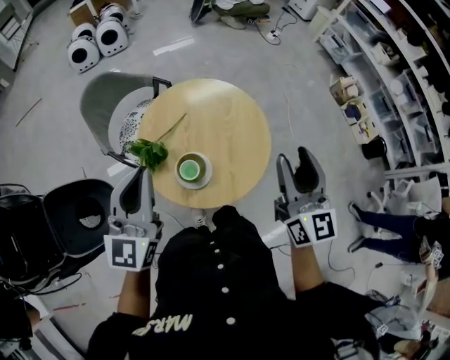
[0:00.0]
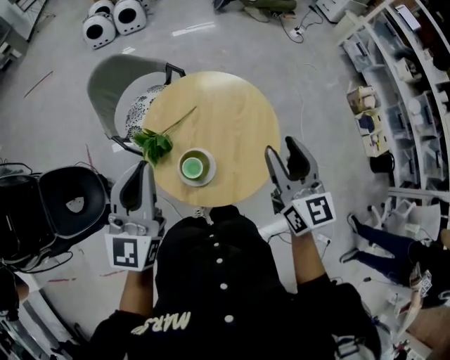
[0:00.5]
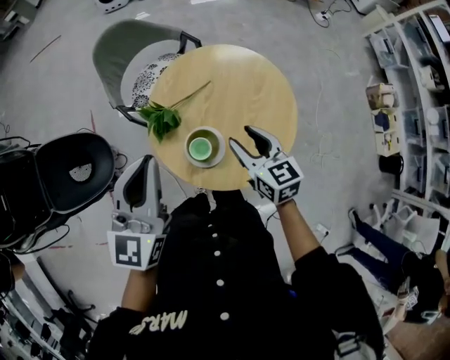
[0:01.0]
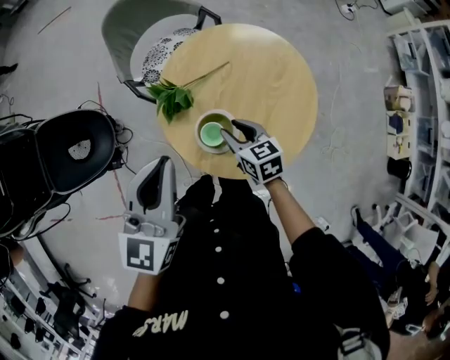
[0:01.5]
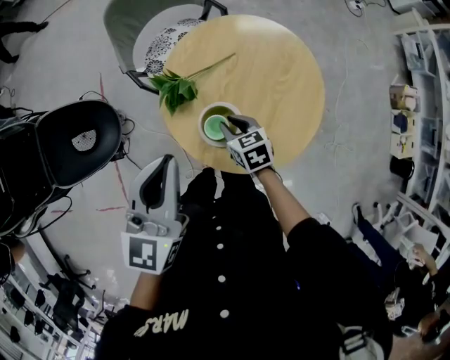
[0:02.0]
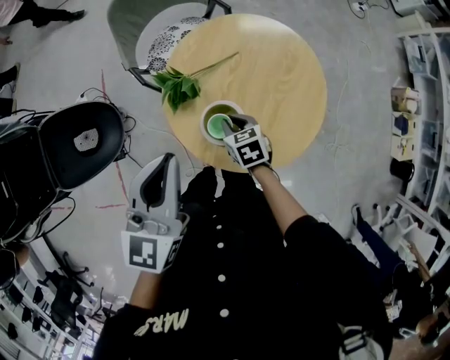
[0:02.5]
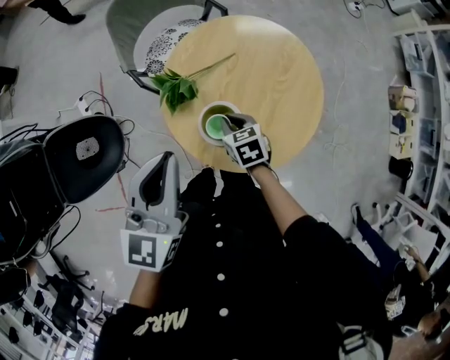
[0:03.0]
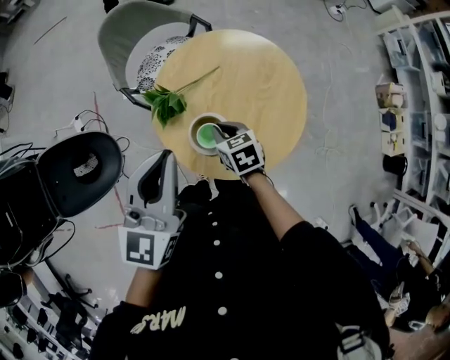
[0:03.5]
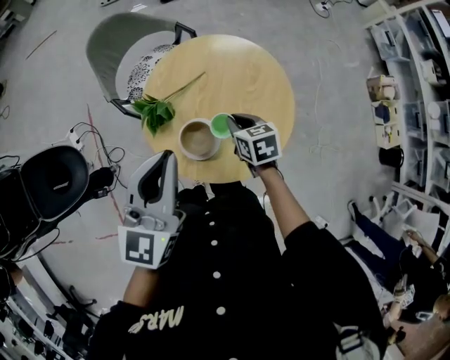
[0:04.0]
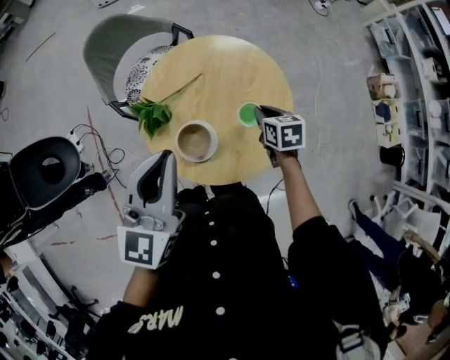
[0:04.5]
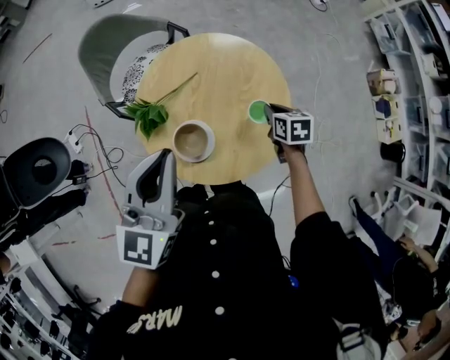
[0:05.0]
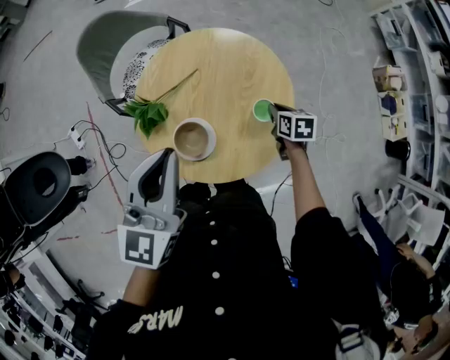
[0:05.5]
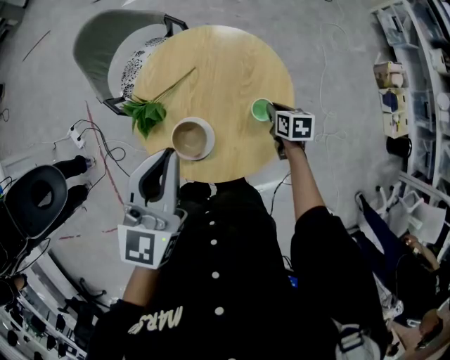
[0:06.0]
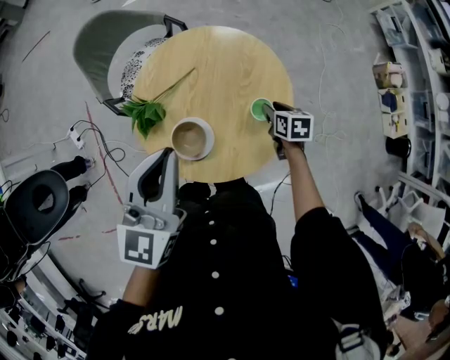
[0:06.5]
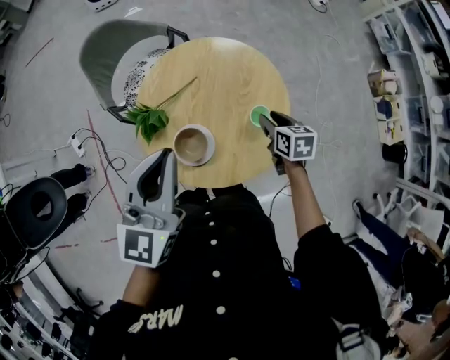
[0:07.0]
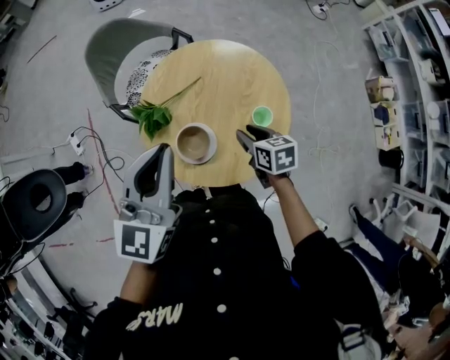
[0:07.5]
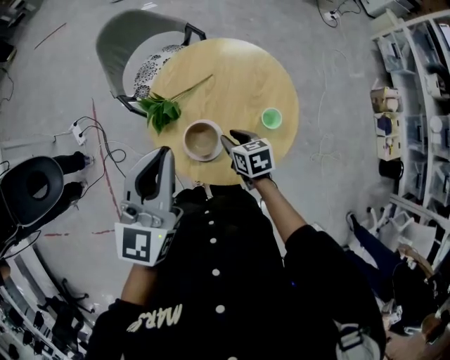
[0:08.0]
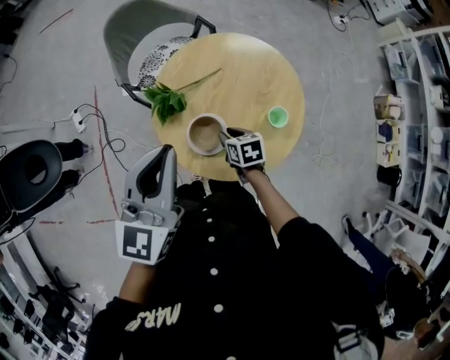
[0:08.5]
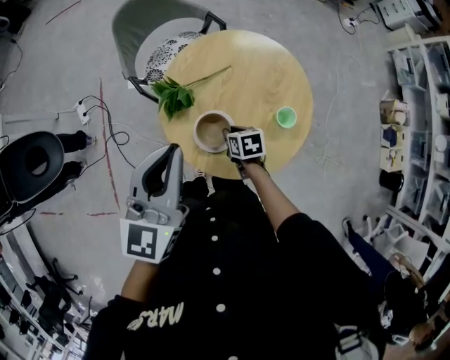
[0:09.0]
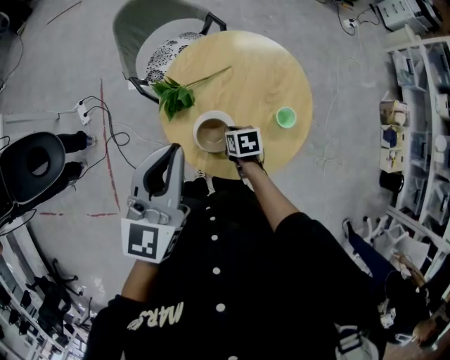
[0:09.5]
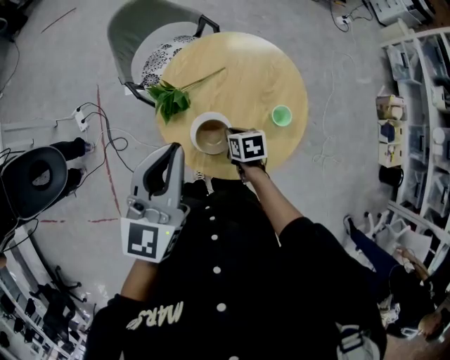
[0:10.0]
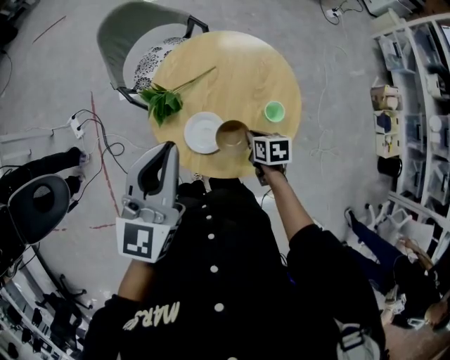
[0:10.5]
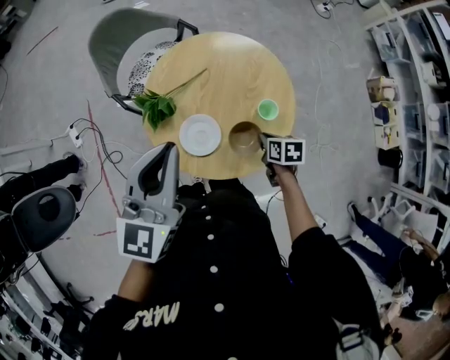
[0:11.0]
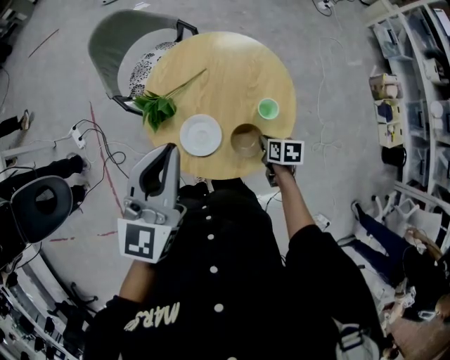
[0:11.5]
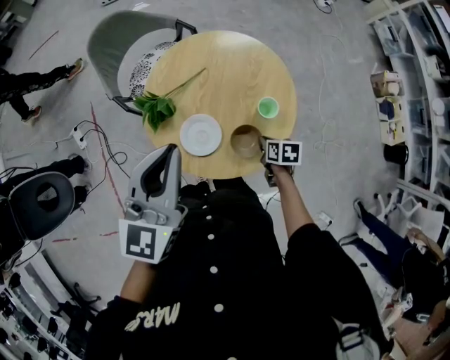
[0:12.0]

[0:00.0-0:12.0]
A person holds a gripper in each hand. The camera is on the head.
0:00.0 to 0:02.0: The left gripper shifts about 10 cm downward, and rotates some 20 degrees. The right gripper goes approximately 40 cm downward, angles its fingers downward, by about 50 degrees, and closes.
0:02.0 to 0:04.0: The right gripper goes about 15 cm to the right and upward, while the left gripper moves to the right, approximately 5 cm.
0:04.0 to 0:06.0: The left gripper goes roughly 5 cm to the right, while the right gripper moves to the right and downward, roughly 20 cm.
0:06.0 to 0:08.0: The left gripper shifts about 5 cm to the left, while the right gripper goes approximately 20 cm to the left, turns by about 20 degrees, and opens.
0:08.0 to 0:10.0: The right gripper closes up.
0:10.0 to 0:12.0: The left gripper moves approximately 5 cm; the right gripper shifts some 20 cm to the right and backward.

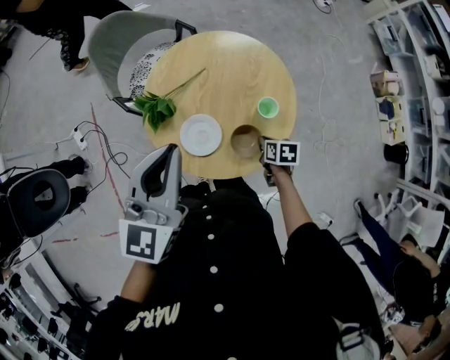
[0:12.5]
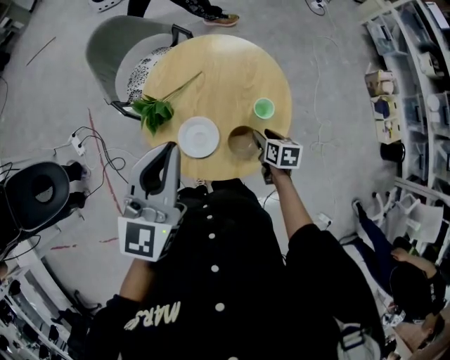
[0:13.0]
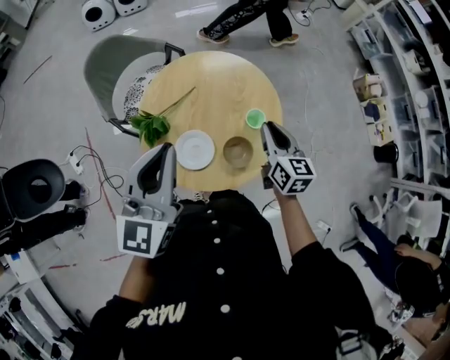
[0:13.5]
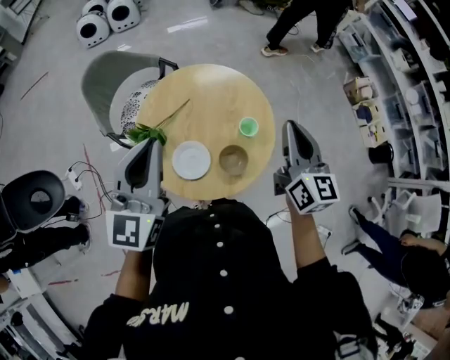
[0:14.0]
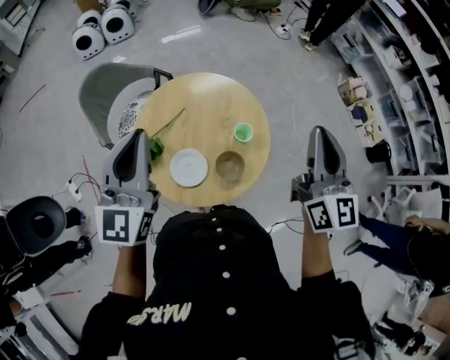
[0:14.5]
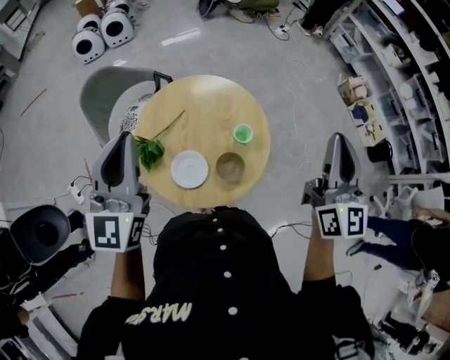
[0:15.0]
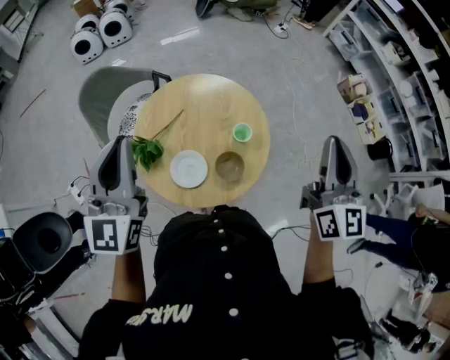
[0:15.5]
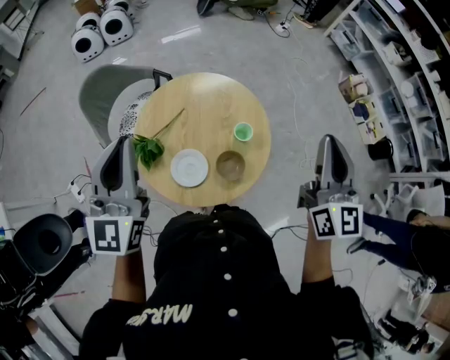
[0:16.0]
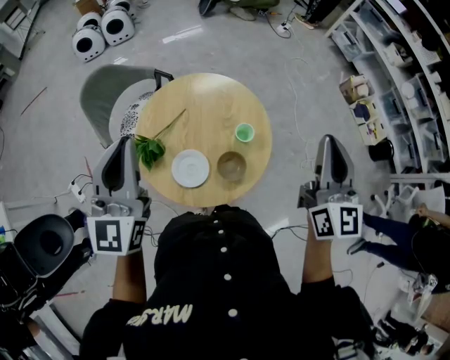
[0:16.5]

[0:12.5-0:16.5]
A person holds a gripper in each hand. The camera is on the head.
0:12.5 to 0:14.5: The right gripper moves upward, some 50 cm, angles its fingers upward, by approximately 70 degrees, and opens, then closes again. The left gripper goes roughly 10 cm upward.
0:14.5 to 0:16.5: The grippers make only small movements.

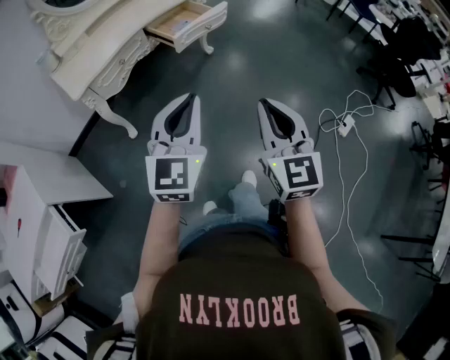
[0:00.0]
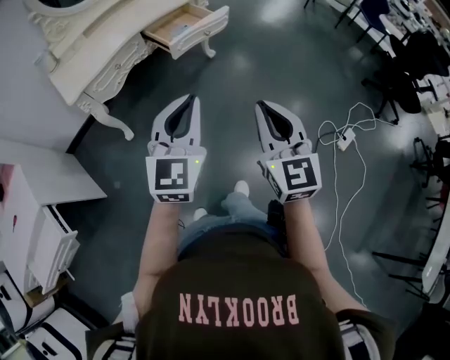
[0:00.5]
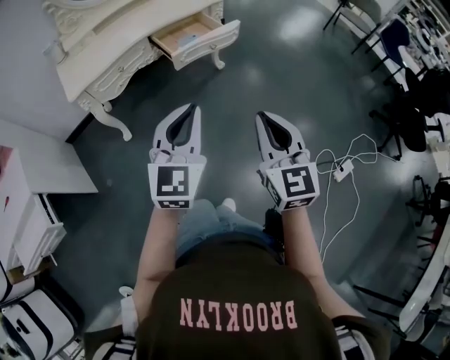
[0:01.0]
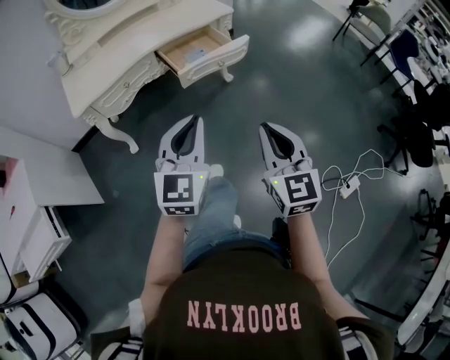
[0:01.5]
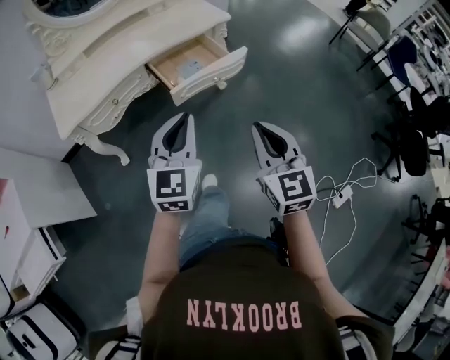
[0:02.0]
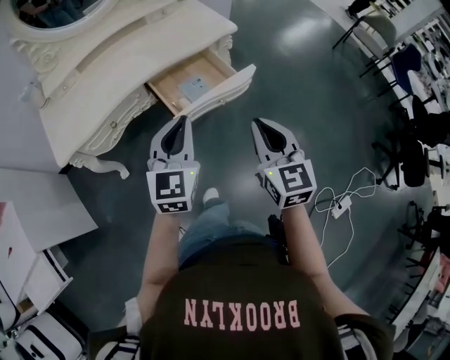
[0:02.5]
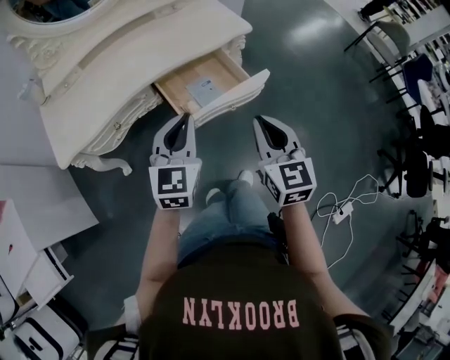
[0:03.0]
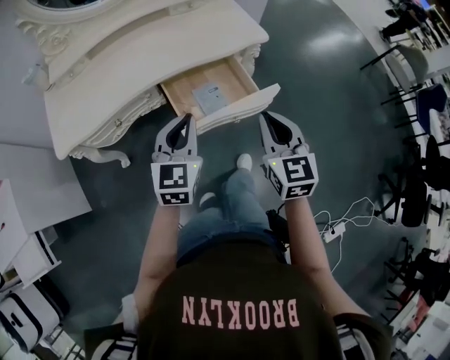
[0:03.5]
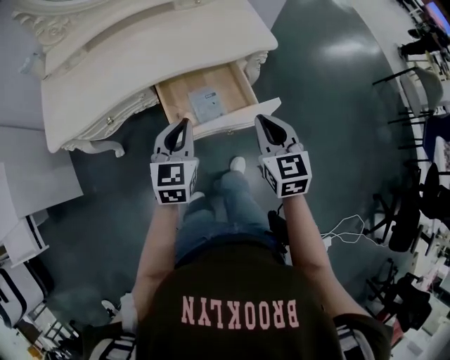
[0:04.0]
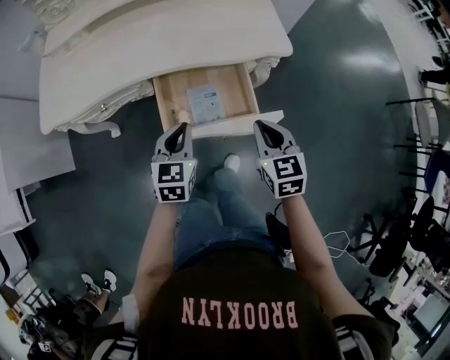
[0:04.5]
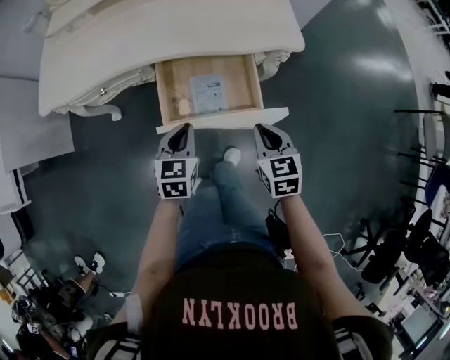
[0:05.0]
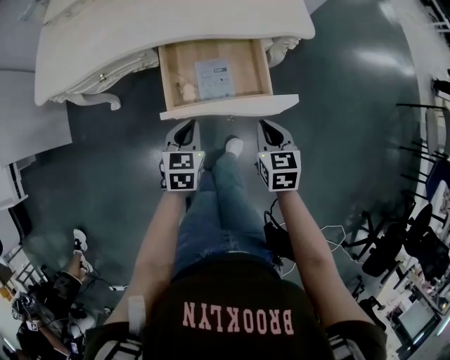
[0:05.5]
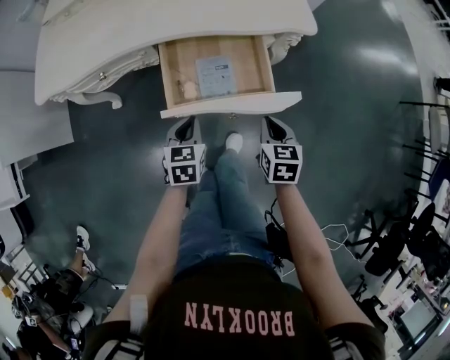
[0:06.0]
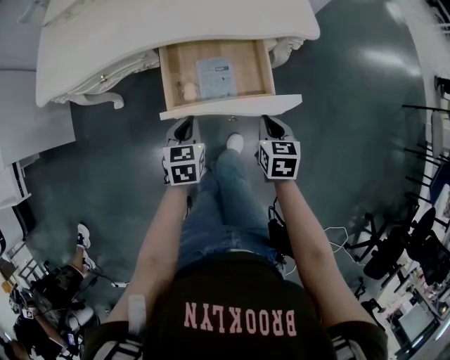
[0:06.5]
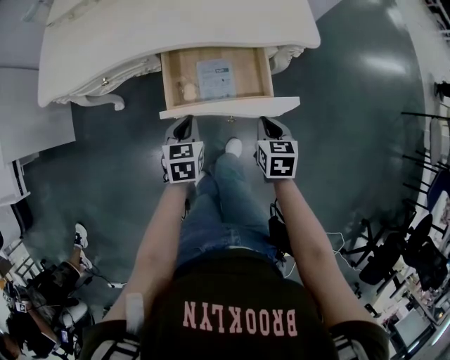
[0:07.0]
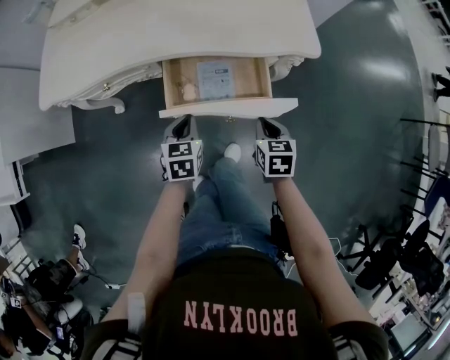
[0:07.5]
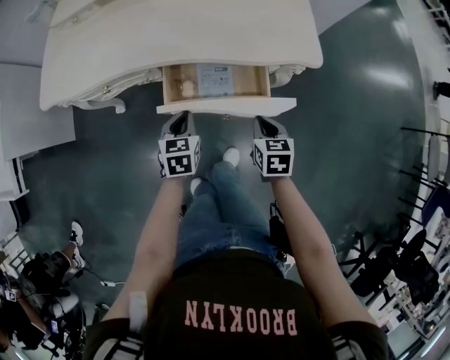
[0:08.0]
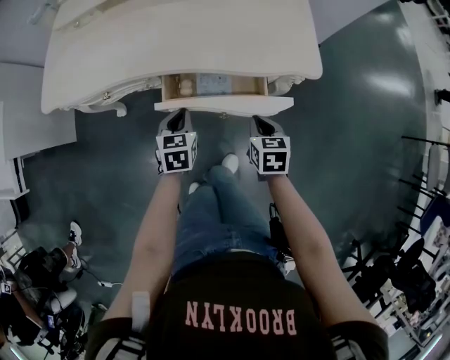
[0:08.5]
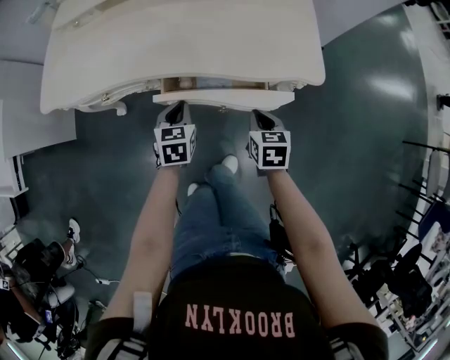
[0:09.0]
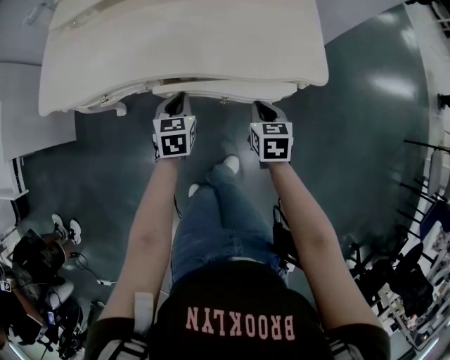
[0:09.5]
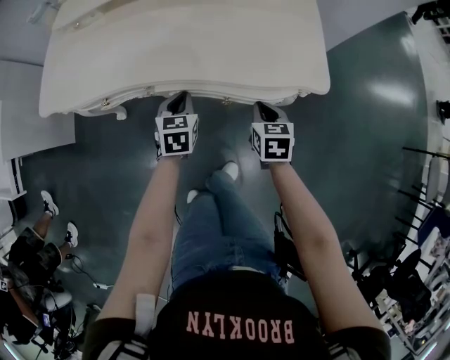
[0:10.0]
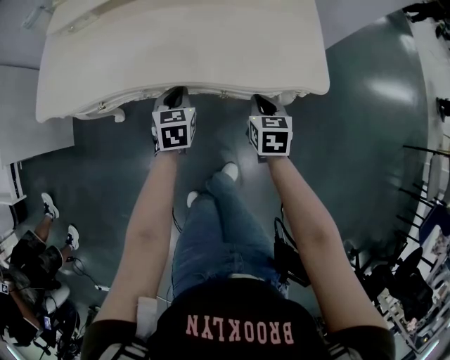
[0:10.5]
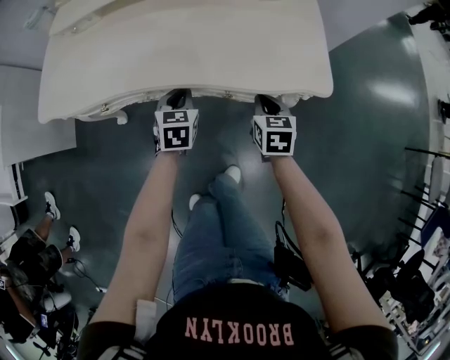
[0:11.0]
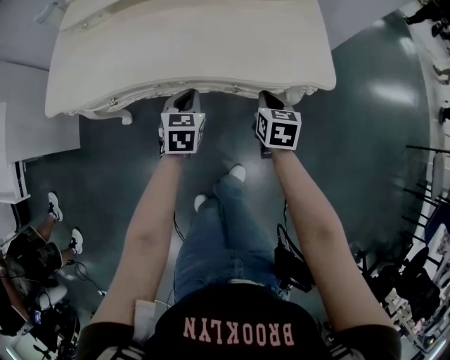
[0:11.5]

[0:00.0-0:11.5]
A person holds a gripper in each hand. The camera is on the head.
0:00.0 to 0:02.0: The two grippers go roughly 30 cm forward.
0:02.0 to 0:04.0: The left gripper travels forward and downward by approximately 30 cm, and rotates approximately 30 degrees; the right gripper heads forward, covering roughly 35 cm, and turns by about 20 degrees.
0:04.0 to 0:06.0: Both grippers move downward, about 20 cm. The left gripper swivels roughly 30 degrees. Meanwhile the right gripper swivels about 20 degrees.
0:06.0 to 0:07.5: The two grippers go about 5 cm forward.
0:07.5 to 0:09.5: Both grippers move forward, approximately 15 cm.
0:09.5 to 0:11.5: The grippers stay close to where they were, moving slightly.
